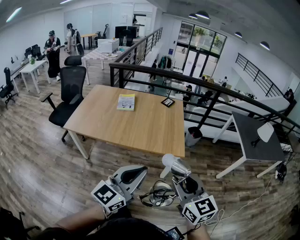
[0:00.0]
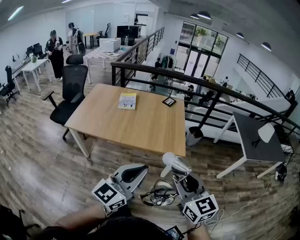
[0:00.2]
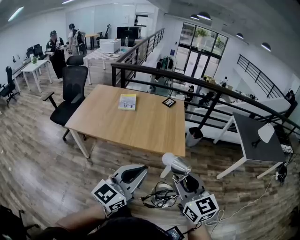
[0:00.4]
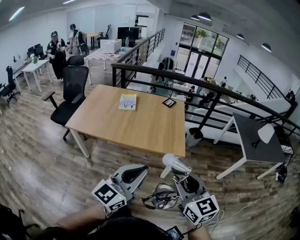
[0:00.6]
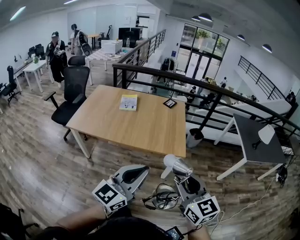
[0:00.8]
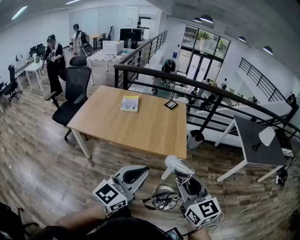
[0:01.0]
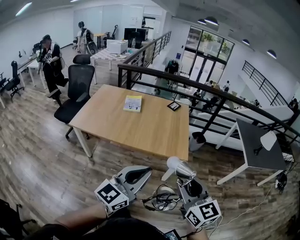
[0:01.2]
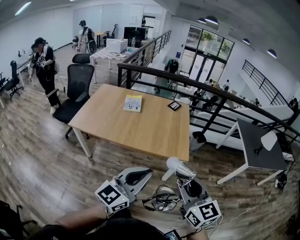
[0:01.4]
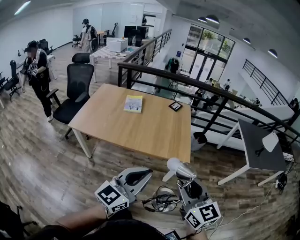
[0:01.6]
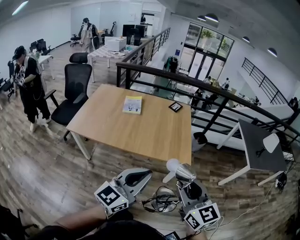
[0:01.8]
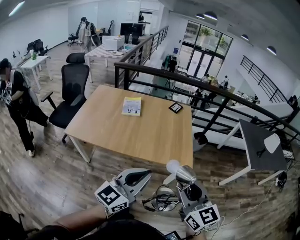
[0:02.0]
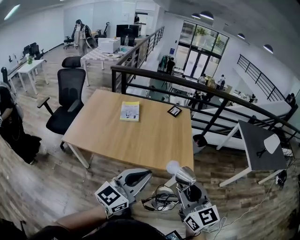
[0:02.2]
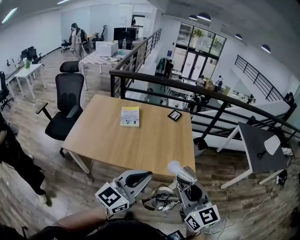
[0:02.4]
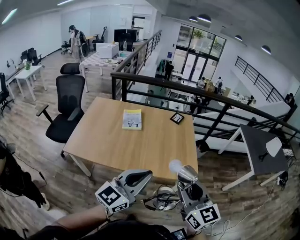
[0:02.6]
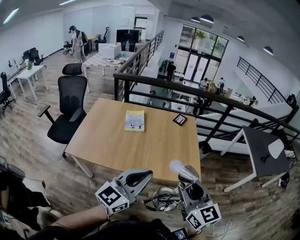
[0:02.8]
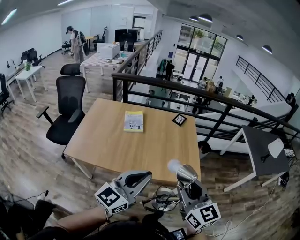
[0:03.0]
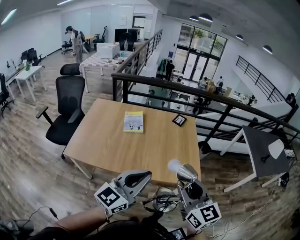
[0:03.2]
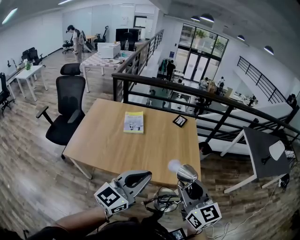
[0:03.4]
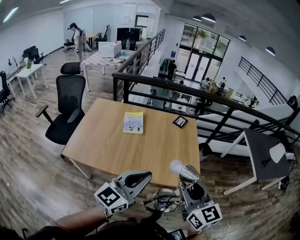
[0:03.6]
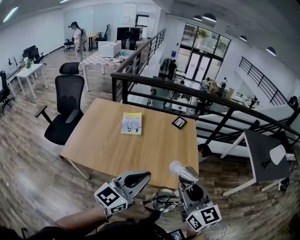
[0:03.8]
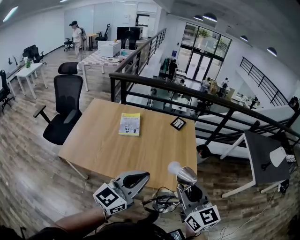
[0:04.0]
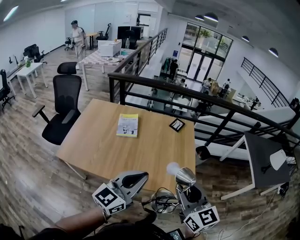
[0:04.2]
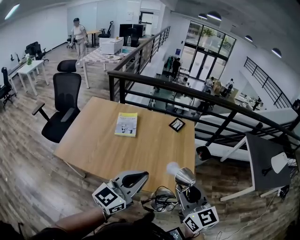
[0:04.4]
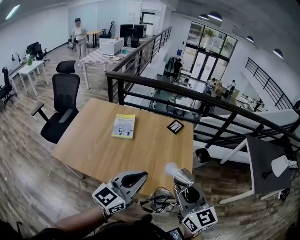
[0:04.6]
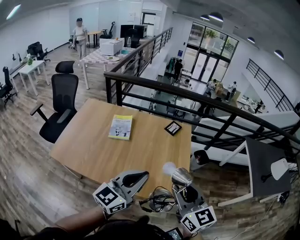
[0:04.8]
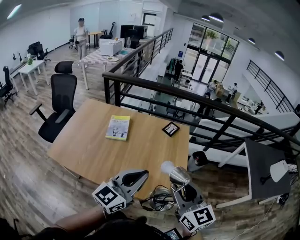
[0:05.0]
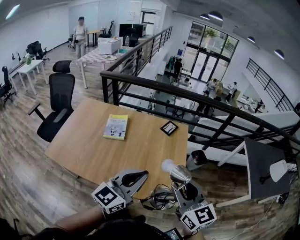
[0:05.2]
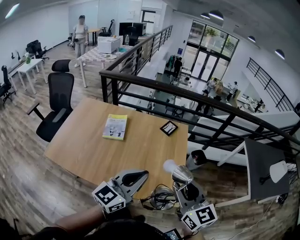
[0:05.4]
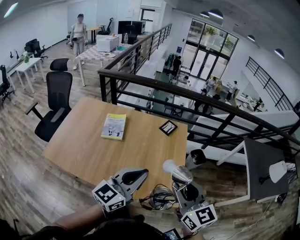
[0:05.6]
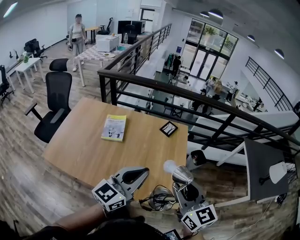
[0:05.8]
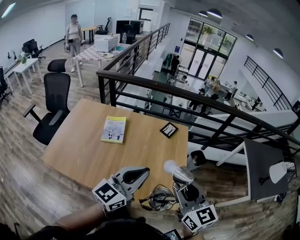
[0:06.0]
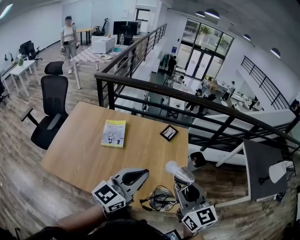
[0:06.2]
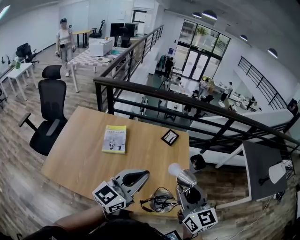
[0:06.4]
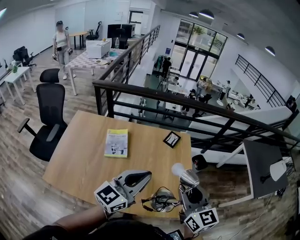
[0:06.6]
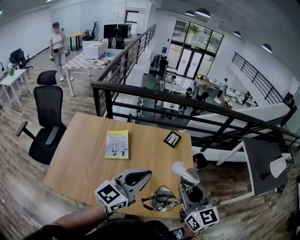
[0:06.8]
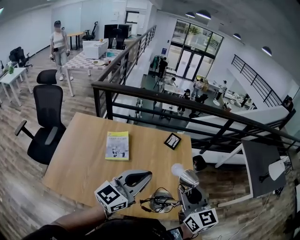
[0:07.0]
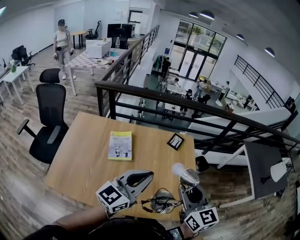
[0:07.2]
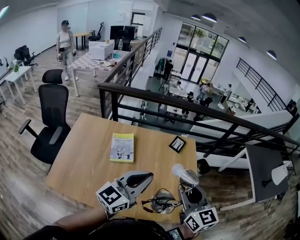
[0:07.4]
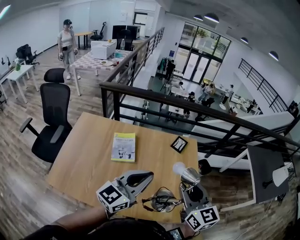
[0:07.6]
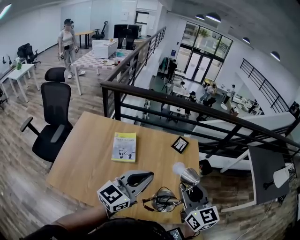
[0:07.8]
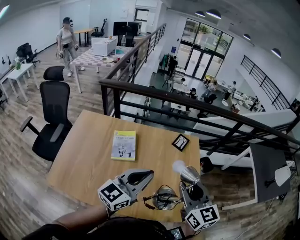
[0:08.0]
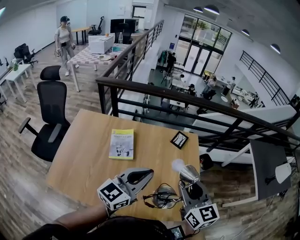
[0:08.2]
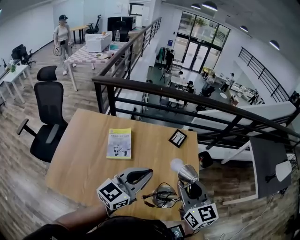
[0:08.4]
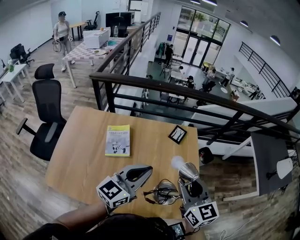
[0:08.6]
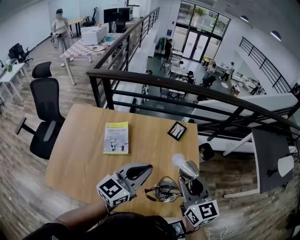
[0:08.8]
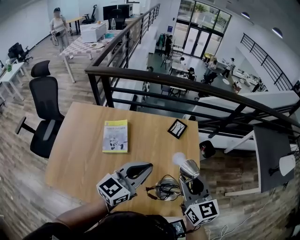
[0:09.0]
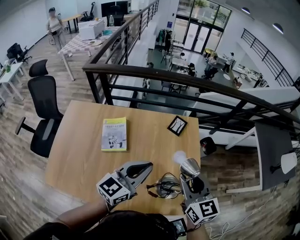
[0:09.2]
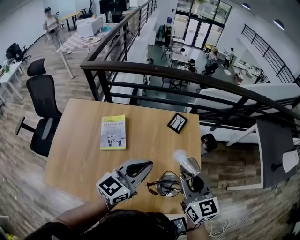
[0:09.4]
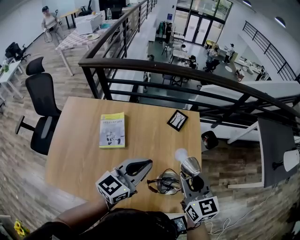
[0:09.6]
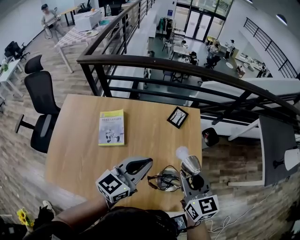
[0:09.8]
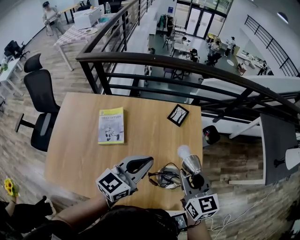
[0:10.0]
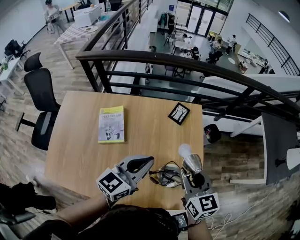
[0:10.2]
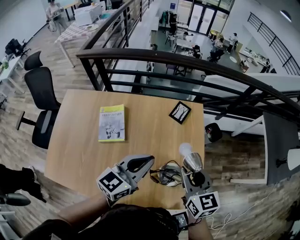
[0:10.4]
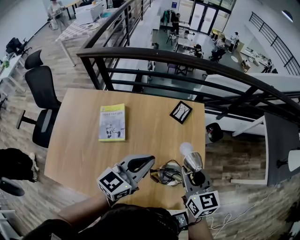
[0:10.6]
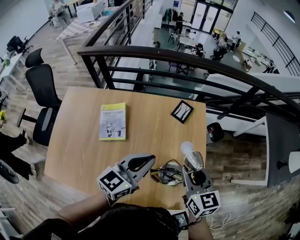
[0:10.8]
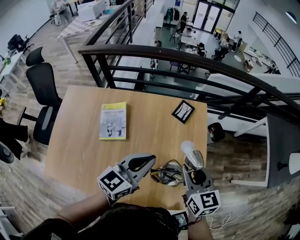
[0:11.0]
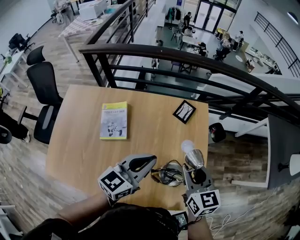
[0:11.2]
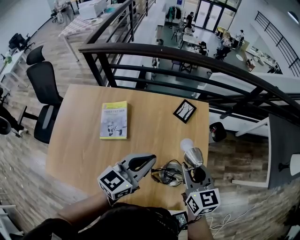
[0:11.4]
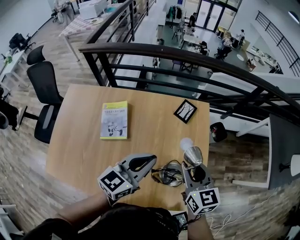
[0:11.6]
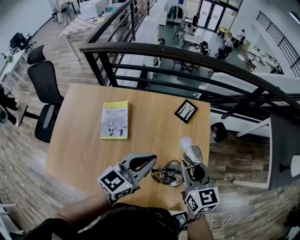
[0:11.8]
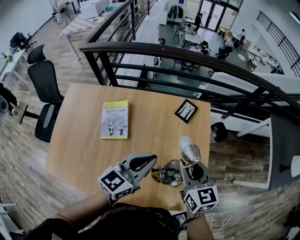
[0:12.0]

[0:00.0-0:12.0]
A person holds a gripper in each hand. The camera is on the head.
0:00.0 to 0:01.6: The grippers move only a little.
0:01.6 to 0:03.0: The two grippers go about 25 cm forward and to the left.
0:03.0 to 0:04.4: Both grippers travel together forward and to the right, approximately 15 cm.
0:04.4 to 0:06.0: The left gripper heads forward and to the right, covering about 15 cm. Meanwhile the right gripper moves forward, approximately 15 cm.
0:06.0 to 0:07.6: The grippers both shift to the left and forward by approximately 20 cm.
0:07.6 to 0:09.0: The left gripper travels forward, downward and to the right by approximately 15 cm. The right gripper heads forward and downward, covering some 10 cm.
0:09.0 to 0:10.4: The left gripper moves forward and downward, about 10 cm. The right gripper is displaced downward and forward by about 10 cm.
0:10.4 to 0:12.0: The right gripper moves about 5 cm.

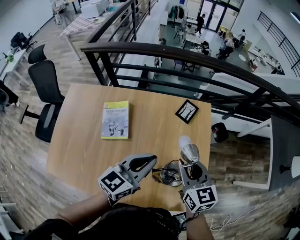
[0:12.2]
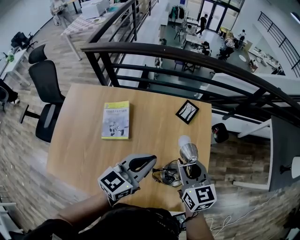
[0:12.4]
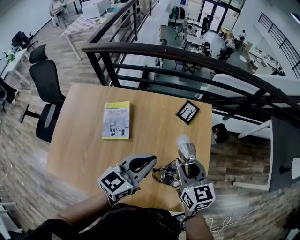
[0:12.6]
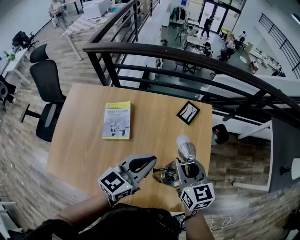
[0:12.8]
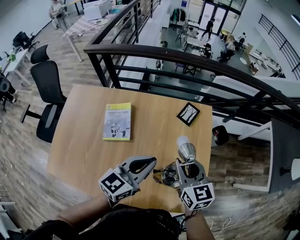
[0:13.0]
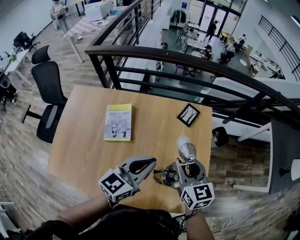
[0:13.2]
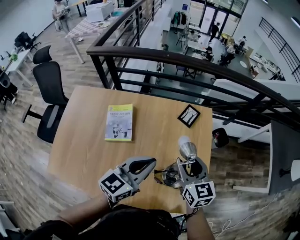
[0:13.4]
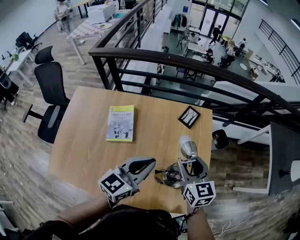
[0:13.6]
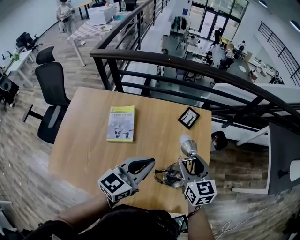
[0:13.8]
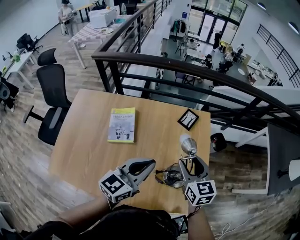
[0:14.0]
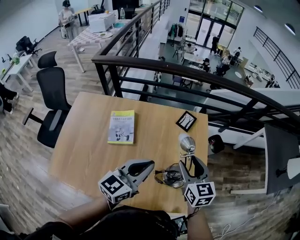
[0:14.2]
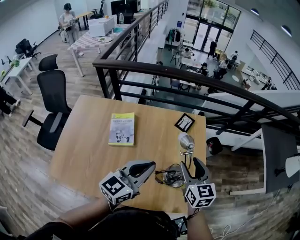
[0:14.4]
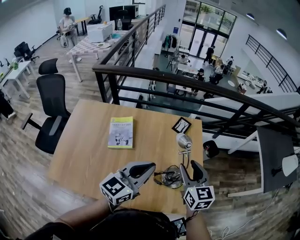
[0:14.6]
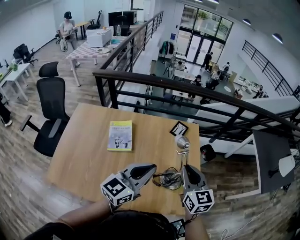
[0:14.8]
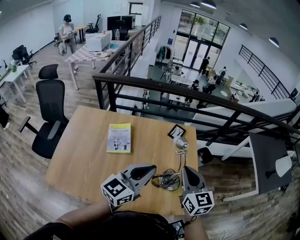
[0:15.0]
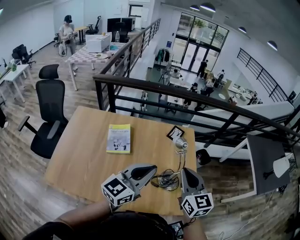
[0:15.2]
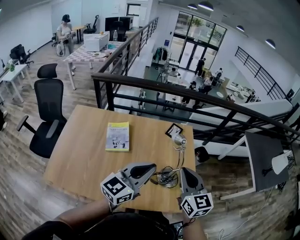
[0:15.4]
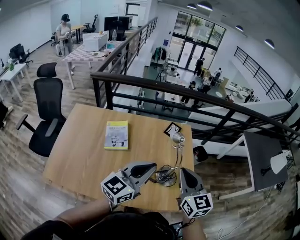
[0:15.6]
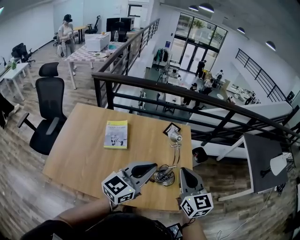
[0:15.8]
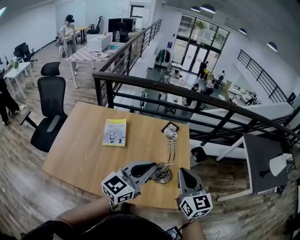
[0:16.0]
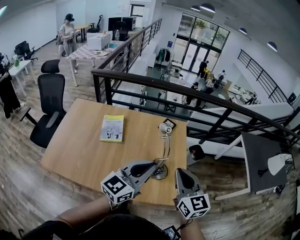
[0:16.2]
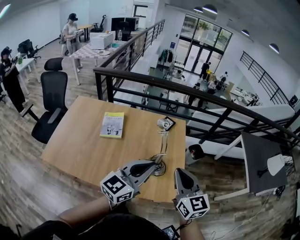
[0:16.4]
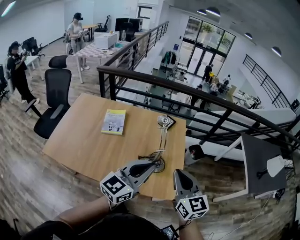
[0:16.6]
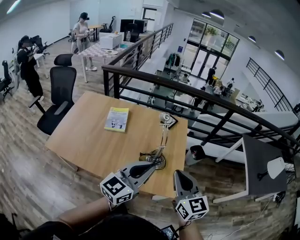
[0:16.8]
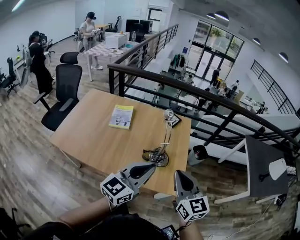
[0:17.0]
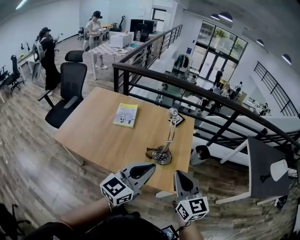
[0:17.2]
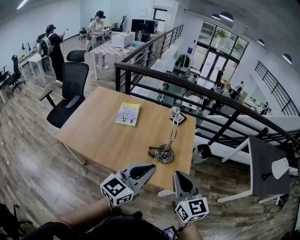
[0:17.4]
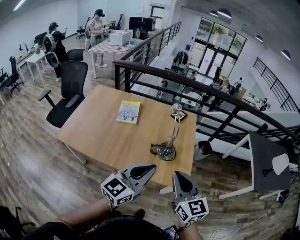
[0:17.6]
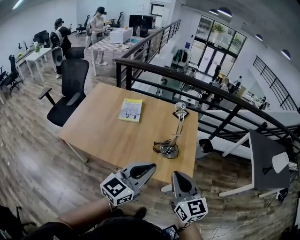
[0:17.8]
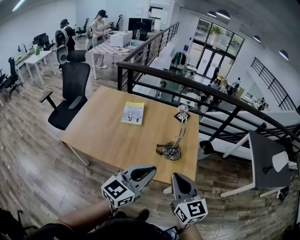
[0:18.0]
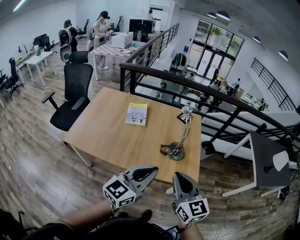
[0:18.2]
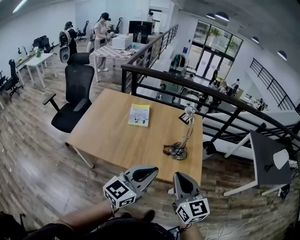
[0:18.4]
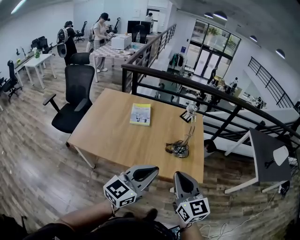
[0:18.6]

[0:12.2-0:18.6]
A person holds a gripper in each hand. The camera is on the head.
0:12.2 to 0:13.8: The right gripper opens up.
0:13.8 to 0:15.4: The grippers both shift backward and upward by some 20 cm. The right gripper closes.
0:15.4 to 0:17.0: Both grippers move backward and to the right, roughly 25 cm.
0:17.0 to 0:18.6: Both grippers travel together to the left and backward, roughly 20 cm.

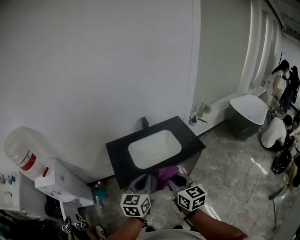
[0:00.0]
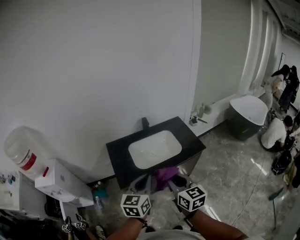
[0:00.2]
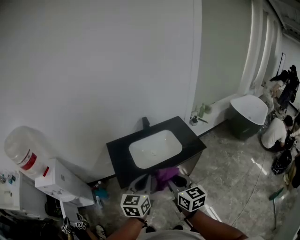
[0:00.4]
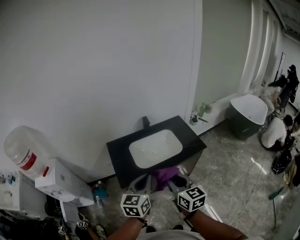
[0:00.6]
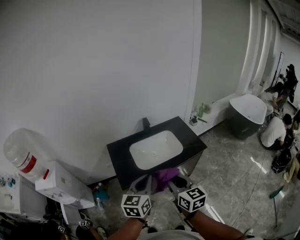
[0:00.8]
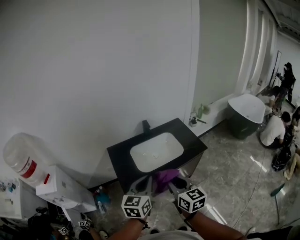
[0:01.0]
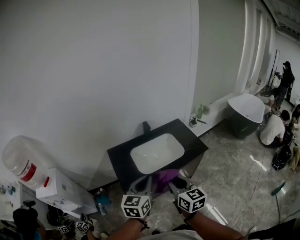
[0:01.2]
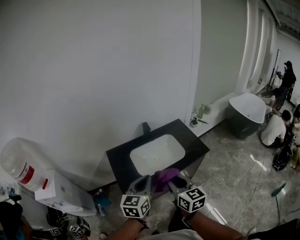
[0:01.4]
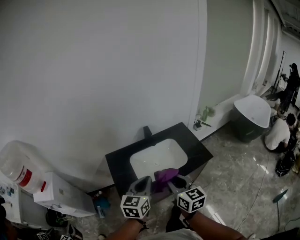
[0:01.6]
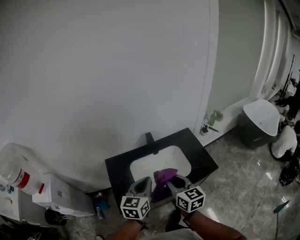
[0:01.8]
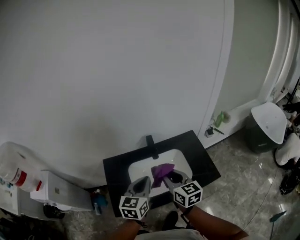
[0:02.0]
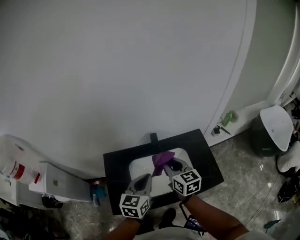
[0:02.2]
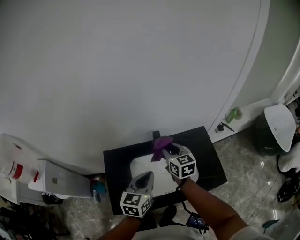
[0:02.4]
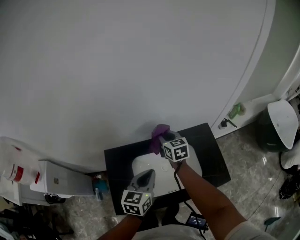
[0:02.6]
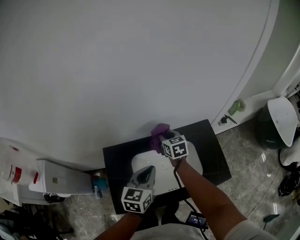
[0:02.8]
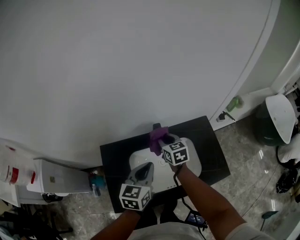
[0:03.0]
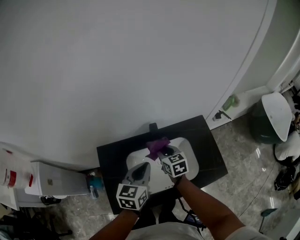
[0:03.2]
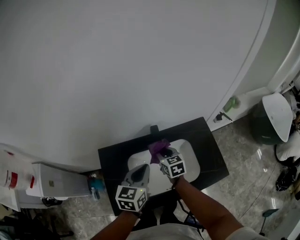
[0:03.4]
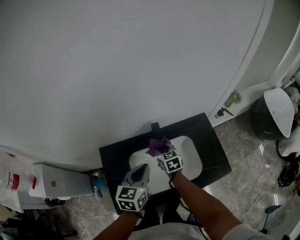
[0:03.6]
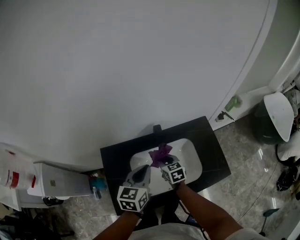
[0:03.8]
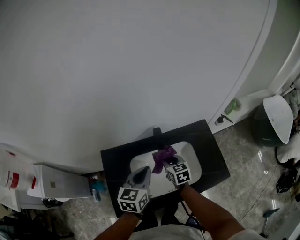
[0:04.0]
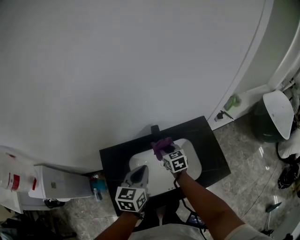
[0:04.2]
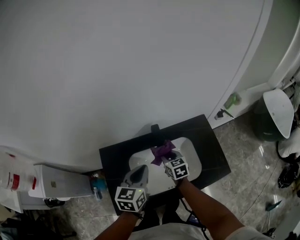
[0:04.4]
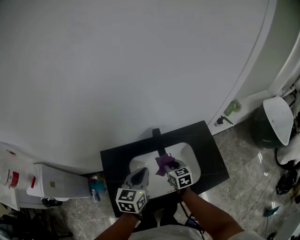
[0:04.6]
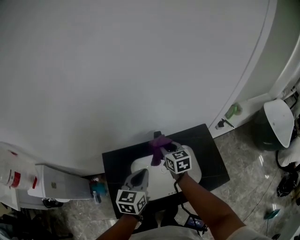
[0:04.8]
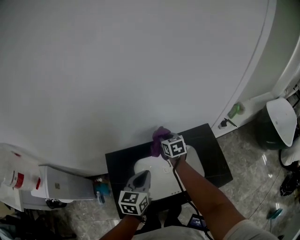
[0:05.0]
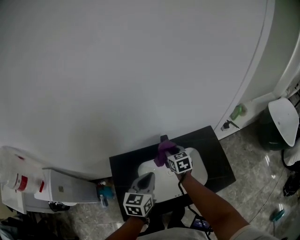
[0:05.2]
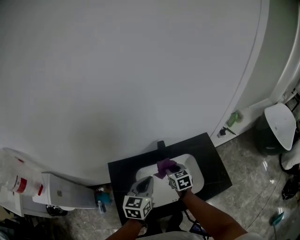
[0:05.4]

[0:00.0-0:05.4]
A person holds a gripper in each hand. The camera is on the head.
0:00.0 to 0:01.4: The two grippers go roughly 5 cm forward.
0:01.4 to 0:02.8: The right gripper moves forward, roughly 60 cm, and changes its angle by roughly 20 degrees. Meanwhile the left gripper heads forward, covering roughly 35 cm.
0:02.8 to 0:04.0: The right gripper heads backward and downward, covering approximately 10 cm.
0:04.0 to 0:05.4: The right gripper goes forward and backward, about 15 cm each way, reversing 3 times.
